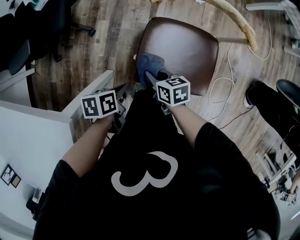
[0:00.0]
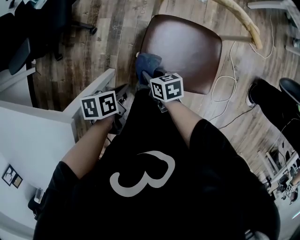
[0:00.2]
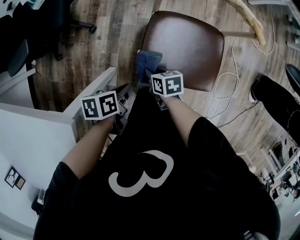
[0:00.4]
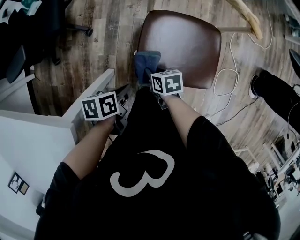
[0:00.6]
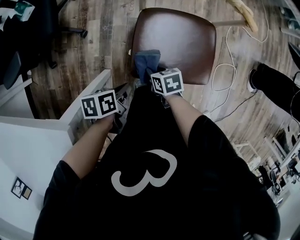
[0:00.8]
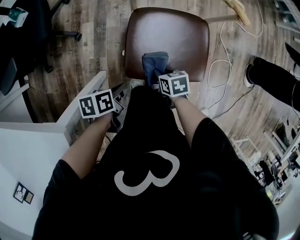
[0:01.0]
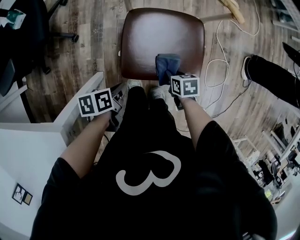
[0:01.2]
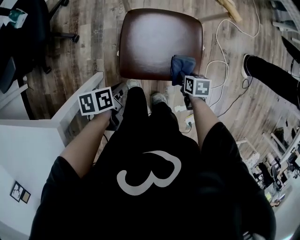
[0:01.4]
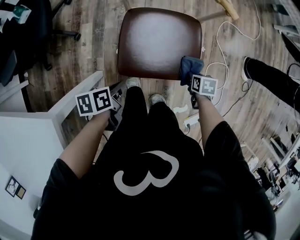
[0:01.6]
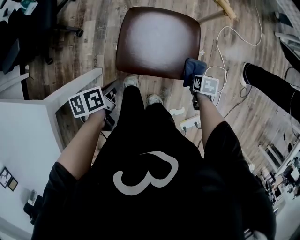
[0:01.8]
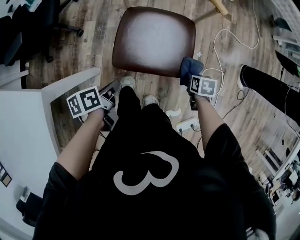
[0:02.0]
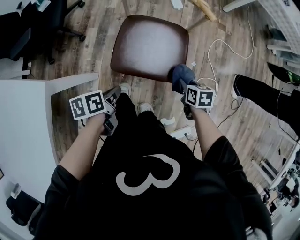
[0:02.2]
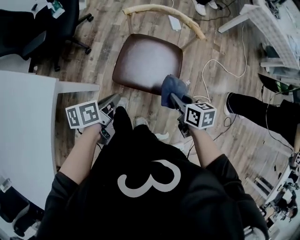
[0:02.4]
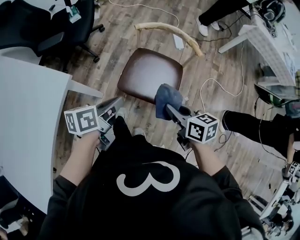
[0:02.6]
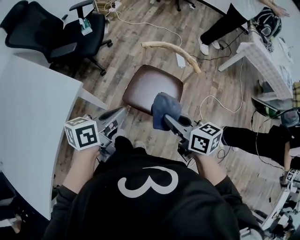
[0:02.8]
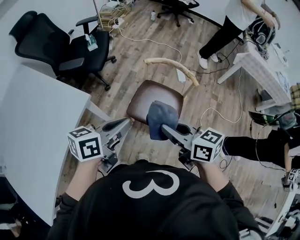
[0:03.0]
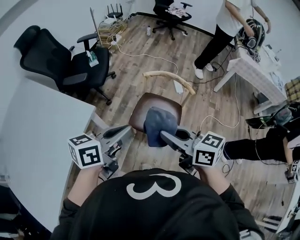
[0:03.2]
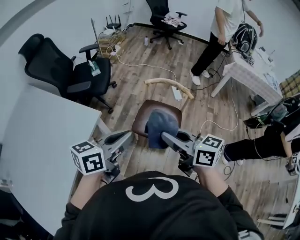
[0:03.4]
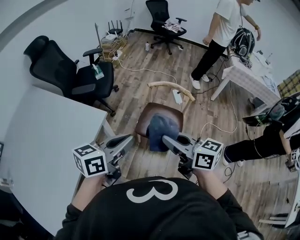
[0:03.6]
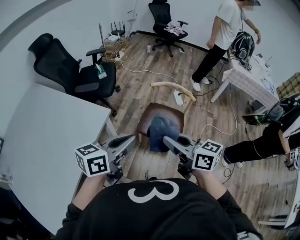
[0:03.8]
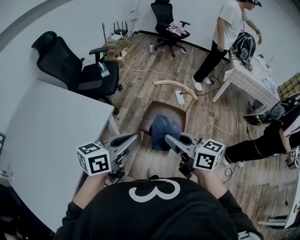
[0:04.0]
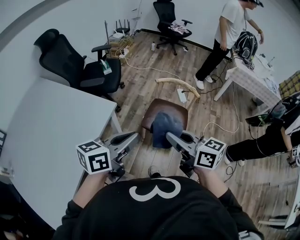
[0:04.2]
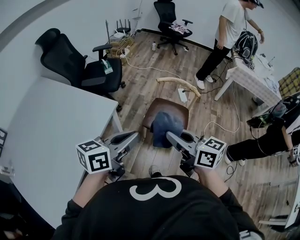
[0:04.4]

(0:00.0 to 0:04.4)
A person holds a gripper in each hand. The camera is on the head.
0:00.0 - 0:01.4: The right gripper changes place by about 25 cm, and swivels some 30 degrees.
0:01.4 - 0:03.0: The right gripper travels upward by about 50 cm, and points its fingers some 50 degrees further upward.
0:03.0 - 0:04.4: The right gripper changes place by roughly 20 cm.

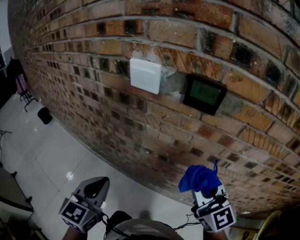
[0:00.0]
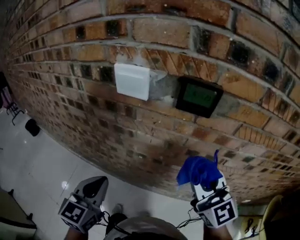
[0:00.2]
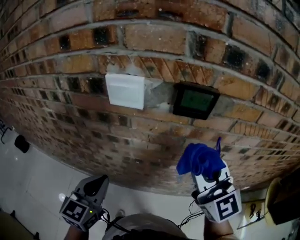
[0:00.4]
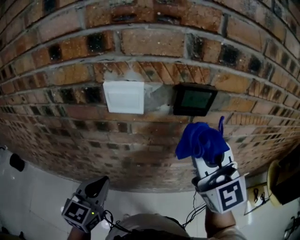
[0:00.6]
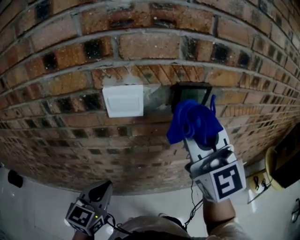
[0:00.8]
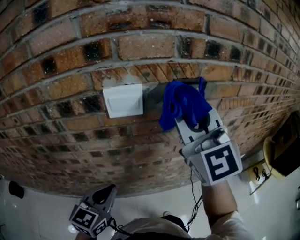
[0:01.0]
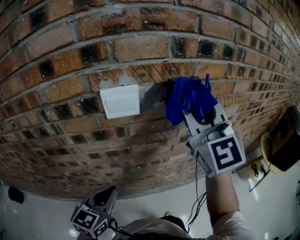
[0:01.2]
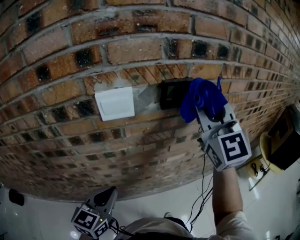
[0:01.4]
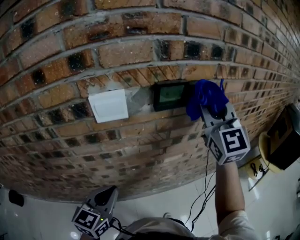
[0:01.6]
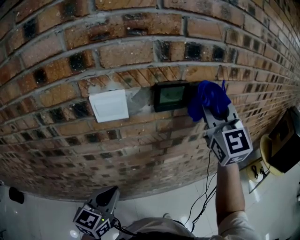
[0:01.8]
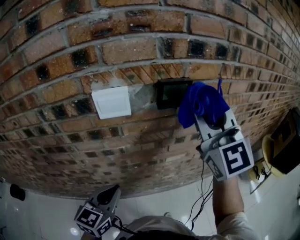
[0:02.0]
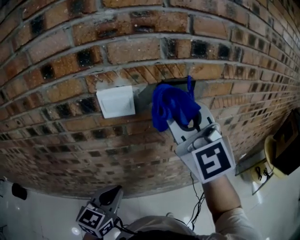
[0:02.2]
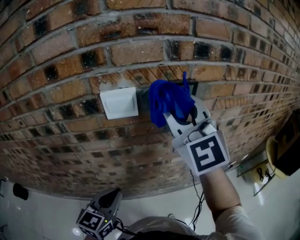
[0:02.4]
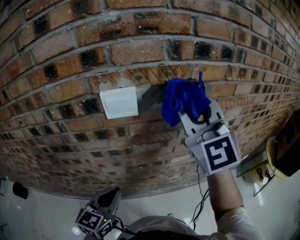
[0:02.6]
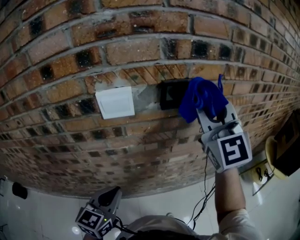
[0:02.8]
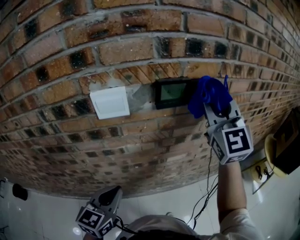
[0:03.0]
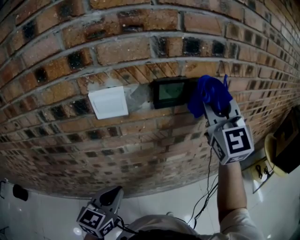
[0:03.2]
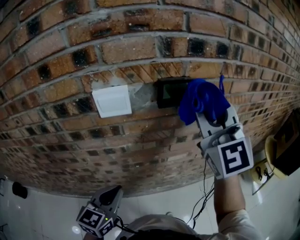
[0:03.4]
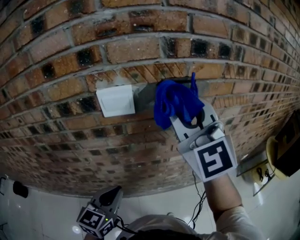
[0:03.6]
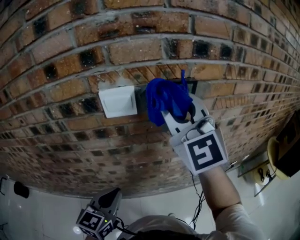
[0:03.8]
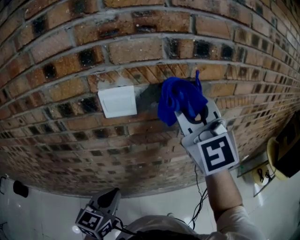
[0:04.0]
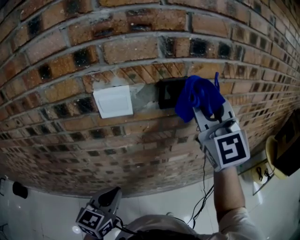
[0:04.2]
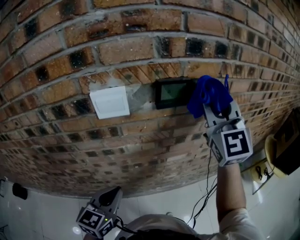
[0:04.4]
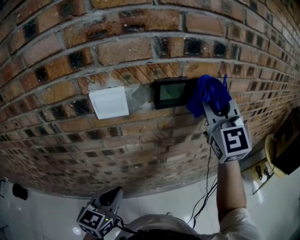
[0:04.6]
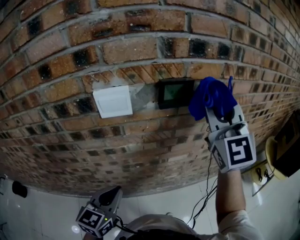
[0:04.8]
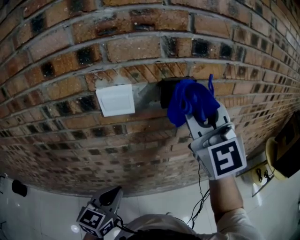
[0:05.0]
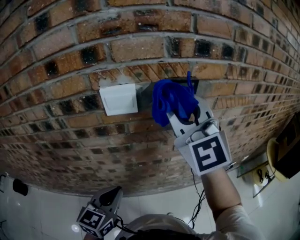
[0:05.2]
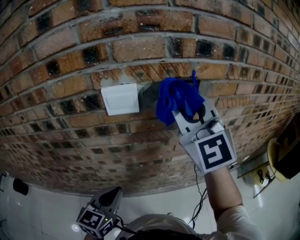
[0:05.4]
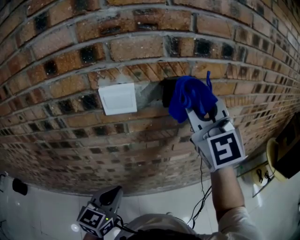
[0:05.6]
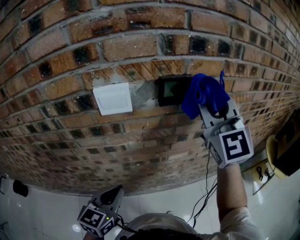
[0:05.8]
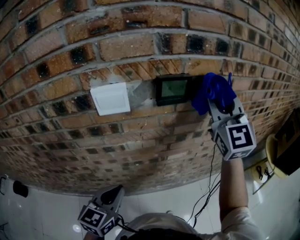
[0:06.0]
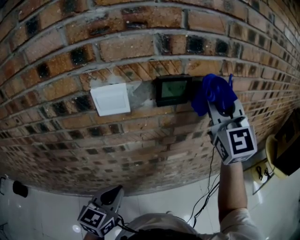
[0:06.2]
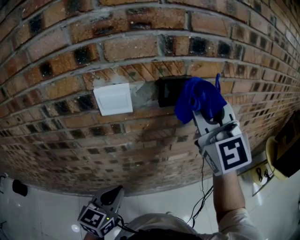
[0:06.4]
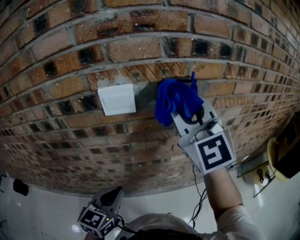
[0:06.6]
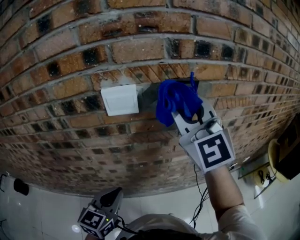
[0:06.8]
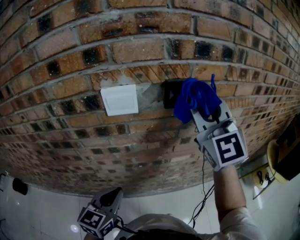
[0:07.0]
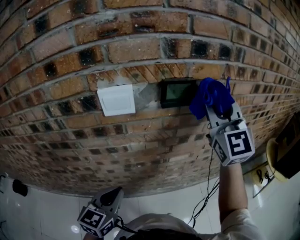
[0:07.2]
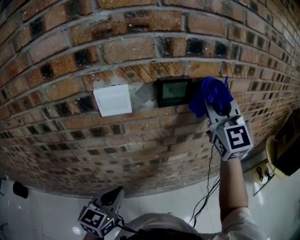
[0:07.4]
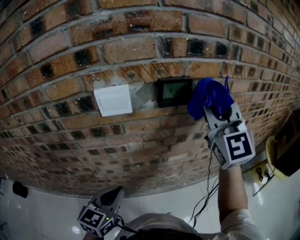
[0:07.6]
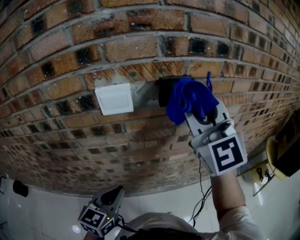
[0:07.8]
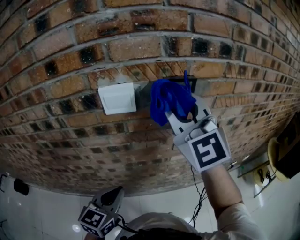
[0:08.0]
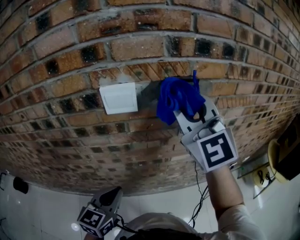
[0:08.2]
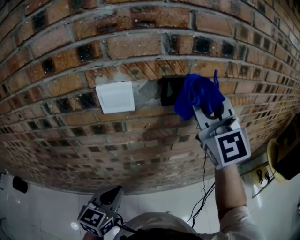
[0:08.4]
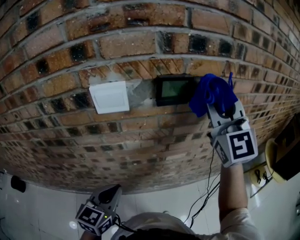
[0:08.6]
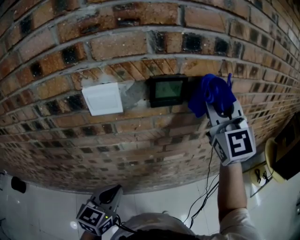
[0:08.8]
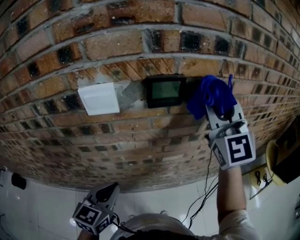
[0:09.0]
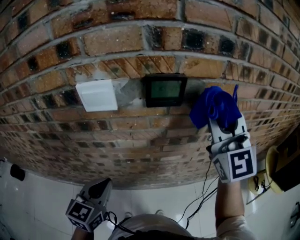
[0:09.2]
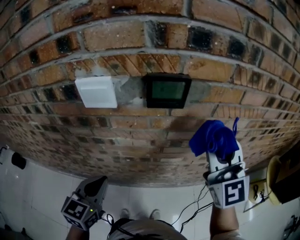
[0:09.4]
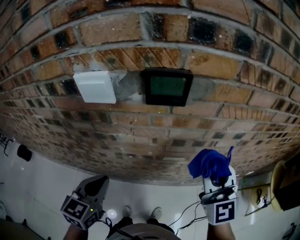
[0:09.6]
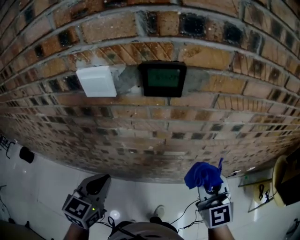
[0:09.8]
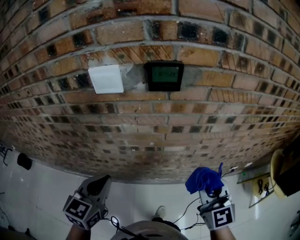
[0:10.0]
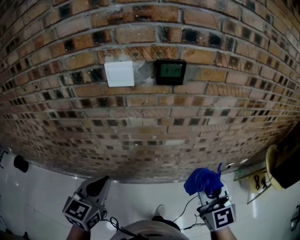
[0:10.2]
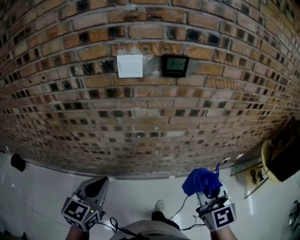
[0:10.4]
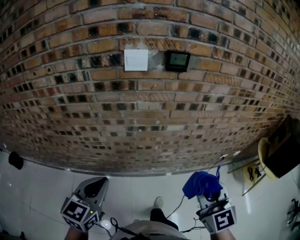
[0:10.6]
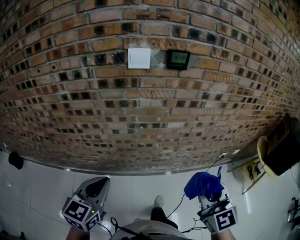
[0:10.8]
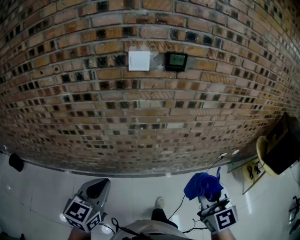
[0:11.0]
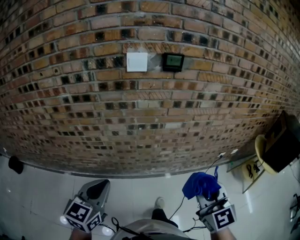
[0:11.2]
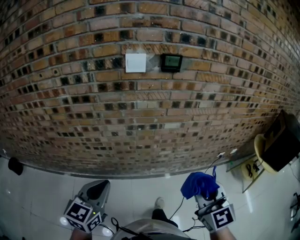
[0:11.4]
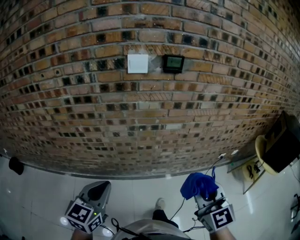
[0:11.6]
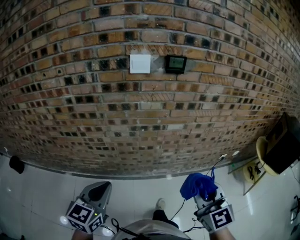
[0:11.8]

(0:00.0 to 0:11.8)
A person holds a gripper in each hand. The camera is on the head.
0:00.0 - 0:01.4: The left gripper ends up some 10 cm from where it was, and swivels some 40 degrees; the right gripper shifts approximately 20 cm upward, and swivels roughly 50 degrees.
0:01.4 - 0:03.0: The right gripper moves left and right over some 15 cm, changing direction 2 times.
0:03.0 - 0:04.4: The right gripper travels to the left and back again, about 15 cm each way.
0:04.4 - 0:06.0: The right gripper goes to the left and returns, roughly 15 cm each way.
0:06.0 - 0:07.4: The right gripper travels to the left and back again, roughly 15 cm each way.
0:07.4 - 0:08.8: The right gripper reaches roughly 15 cm to the left, then returns.
0:08.8 - 0:10.4: The left gripper is displaced backward by approximately 15 cm. Meanwhile the right gripper moves backward and downward, approximately 35 cm, and changes its angle by approximately 30 degrees.
0:10.4 - 0:11.8: Both grippers move backward, approximately 10 cm.

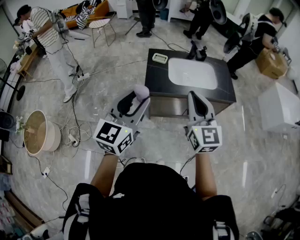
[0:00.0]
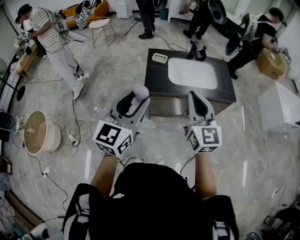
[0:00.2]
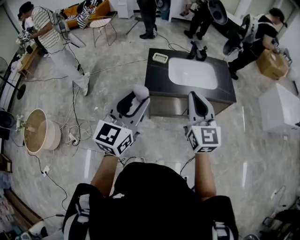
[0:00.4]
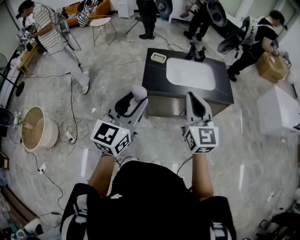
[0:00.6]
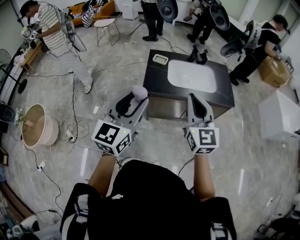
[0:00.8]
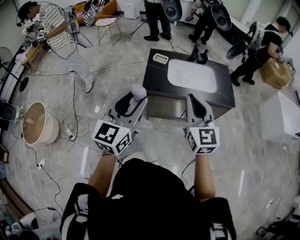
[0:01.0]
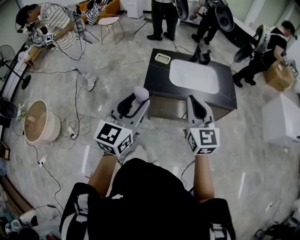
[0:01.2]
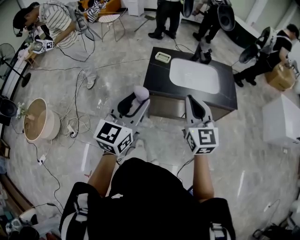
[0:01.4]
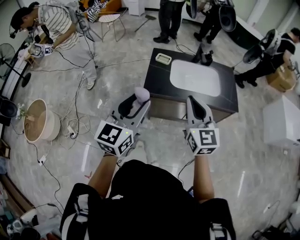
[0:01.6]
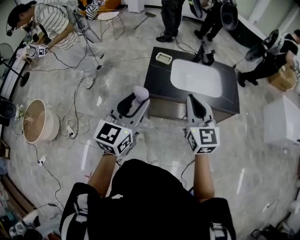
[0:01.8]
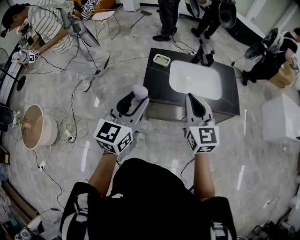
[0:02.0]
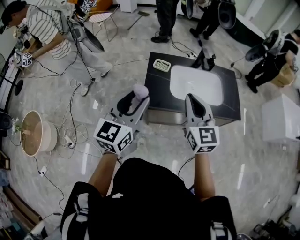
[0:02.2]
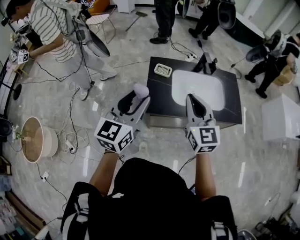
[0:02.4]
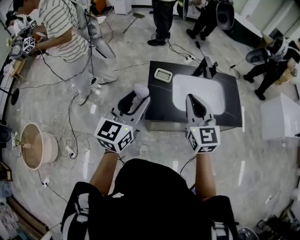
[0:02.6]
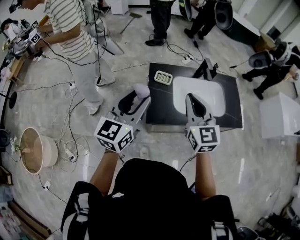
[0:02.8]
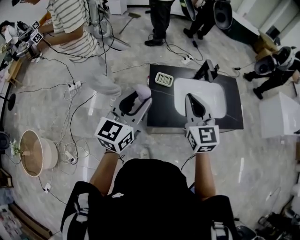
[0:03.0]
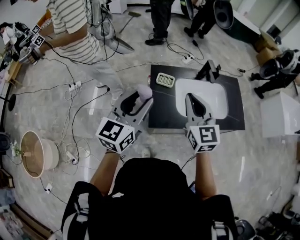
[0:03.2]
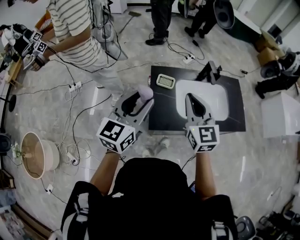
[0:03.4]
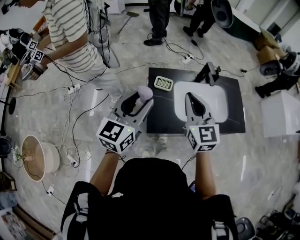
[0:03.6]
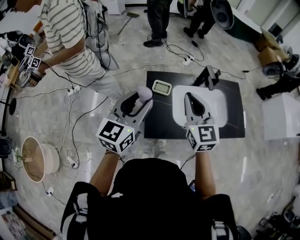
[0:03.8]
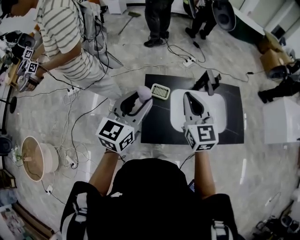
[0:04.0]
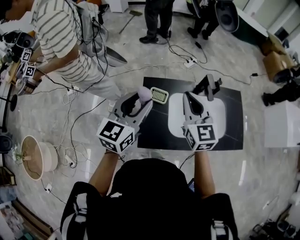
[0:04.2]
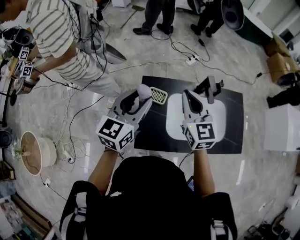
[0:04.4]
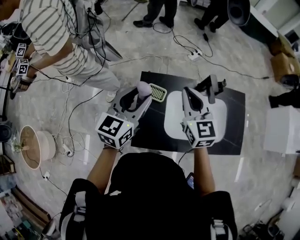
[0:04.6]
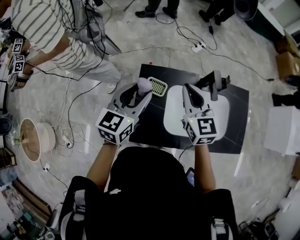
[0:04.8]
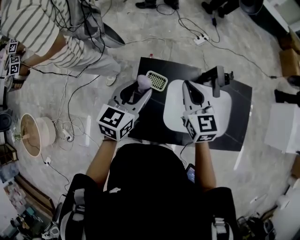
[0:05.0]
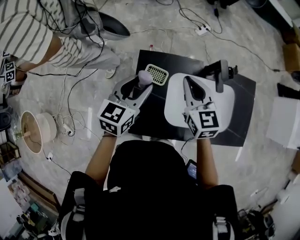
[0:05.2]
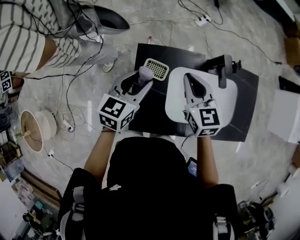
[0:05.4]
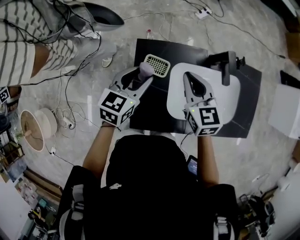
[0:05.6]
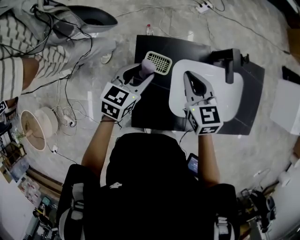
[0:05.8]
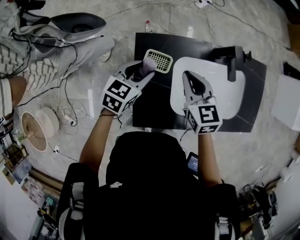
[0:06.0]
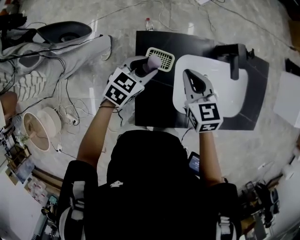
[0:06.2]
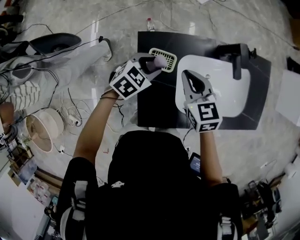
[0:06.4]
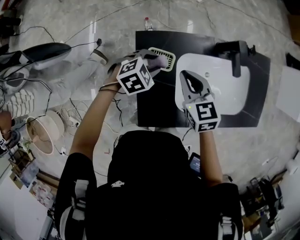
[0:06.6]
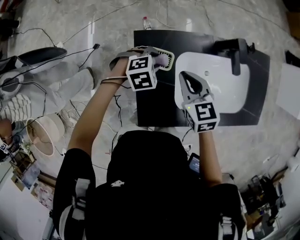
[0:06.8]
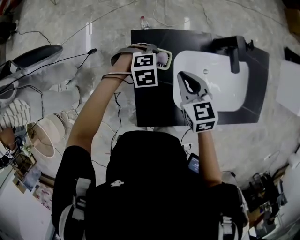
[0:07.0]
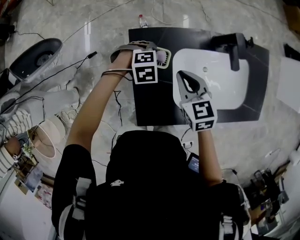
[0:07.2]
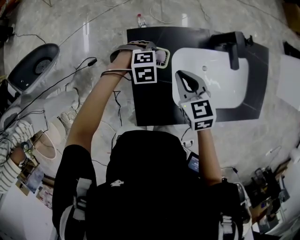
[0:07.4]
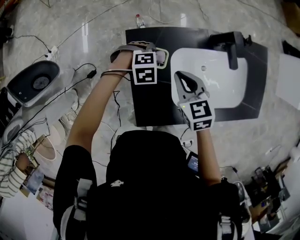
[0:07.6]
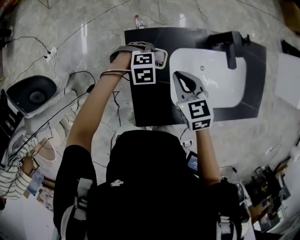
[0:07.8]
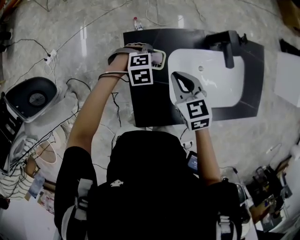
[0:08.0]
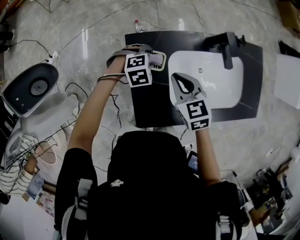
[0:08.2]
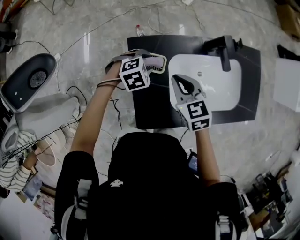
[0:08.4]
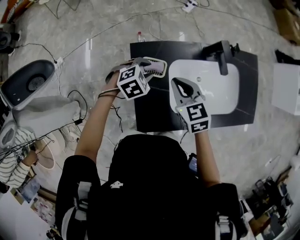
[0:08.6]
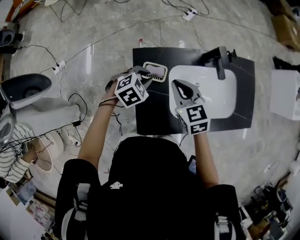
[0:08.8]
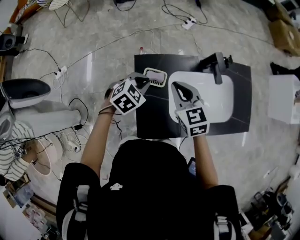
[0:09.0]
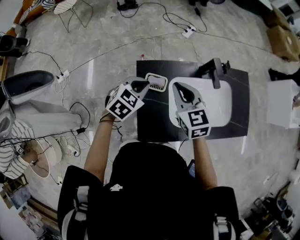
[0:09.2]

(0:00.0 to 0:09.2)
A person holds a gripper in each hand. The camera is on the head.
0:00.0 - 0:01.6: The right gripper changes place by roughly 5 cm. Meanwhile the left gripper ends up roughly 5 cm from where it was.
0:01.6 - 0:03.0: The left gripper moves forward, approximately 30 cm. Meanwhile the right gripper travels forward and to the left by about 25 cm.
0:03.0 - 0:04.6: Both grippers move forward, some 20 cm.
0:04.6 - 0:06.2: The two grippers go approximately 25 cm downward. The left gripper turns by approximately 40 degrees, while the right gripper changes its angle by approximately 20 degrees.
0:06.2 - 0:07.6: The left gripper travels downward by approximately 10 cm, and angles its fingers downward, by some 30 degrees.
0:07.6 - 0:09.2: Both grippers travel together upward, approximately 15 cm. The left gripper swivels roughly 50 degrees, and closes.
